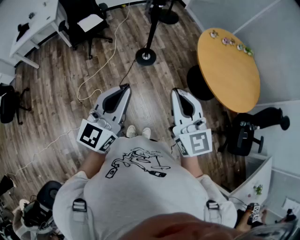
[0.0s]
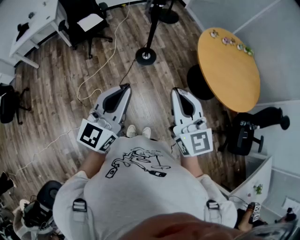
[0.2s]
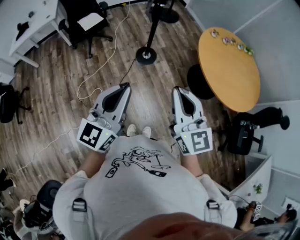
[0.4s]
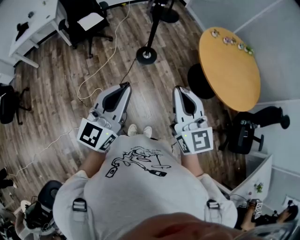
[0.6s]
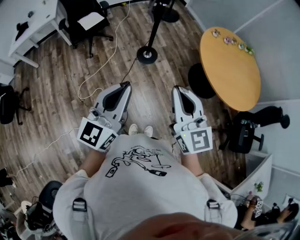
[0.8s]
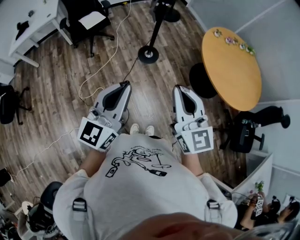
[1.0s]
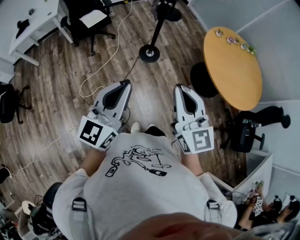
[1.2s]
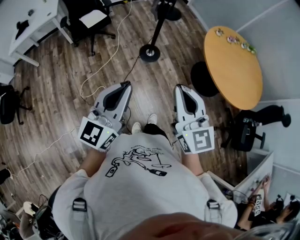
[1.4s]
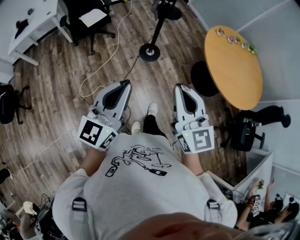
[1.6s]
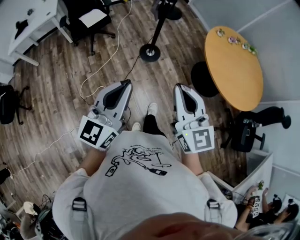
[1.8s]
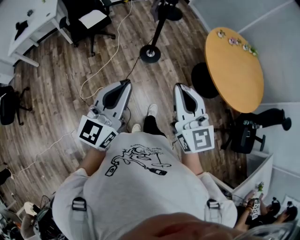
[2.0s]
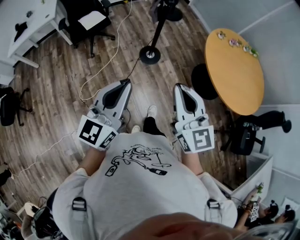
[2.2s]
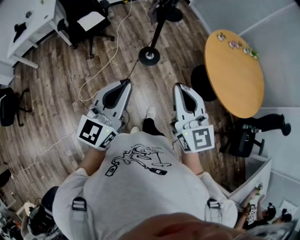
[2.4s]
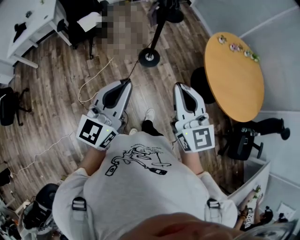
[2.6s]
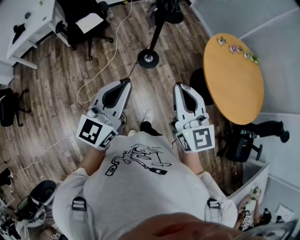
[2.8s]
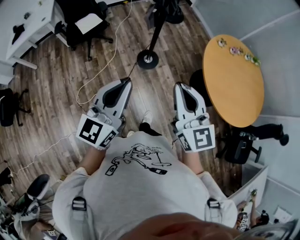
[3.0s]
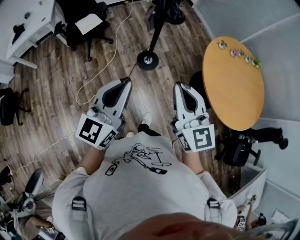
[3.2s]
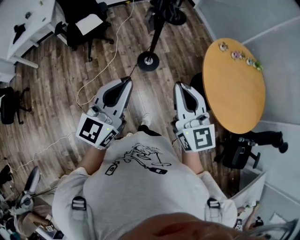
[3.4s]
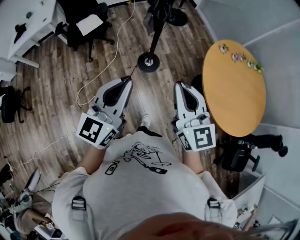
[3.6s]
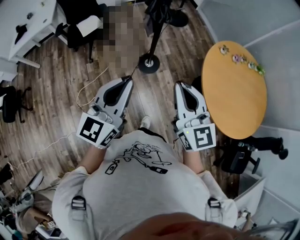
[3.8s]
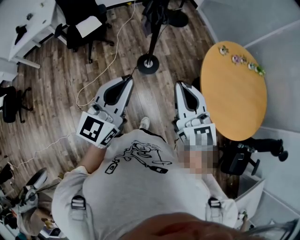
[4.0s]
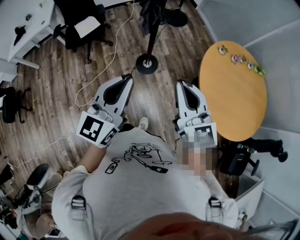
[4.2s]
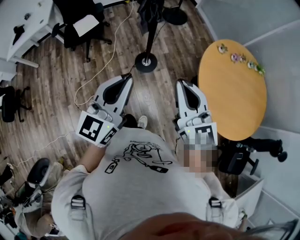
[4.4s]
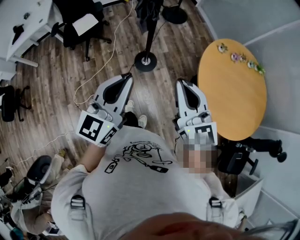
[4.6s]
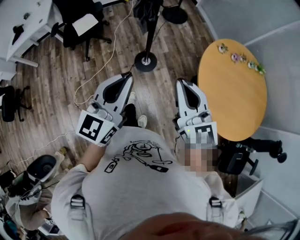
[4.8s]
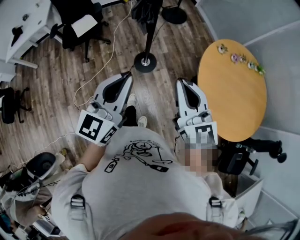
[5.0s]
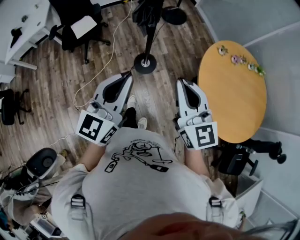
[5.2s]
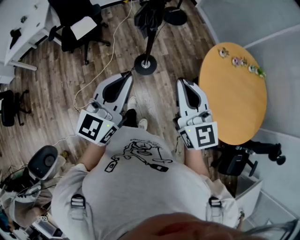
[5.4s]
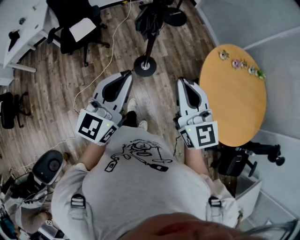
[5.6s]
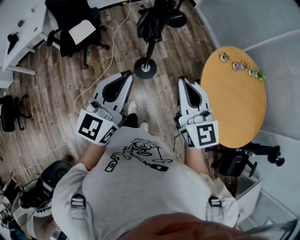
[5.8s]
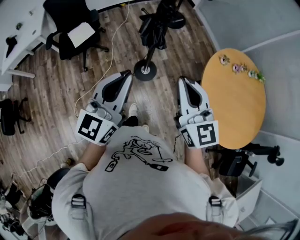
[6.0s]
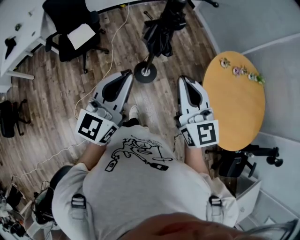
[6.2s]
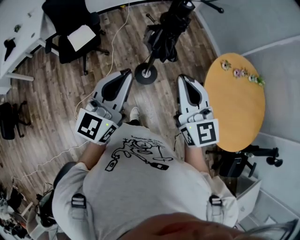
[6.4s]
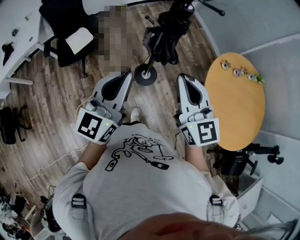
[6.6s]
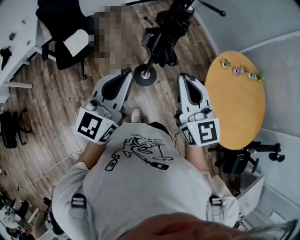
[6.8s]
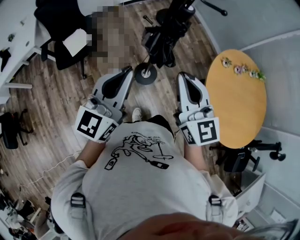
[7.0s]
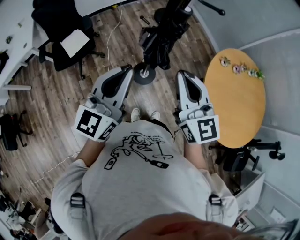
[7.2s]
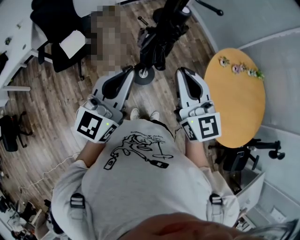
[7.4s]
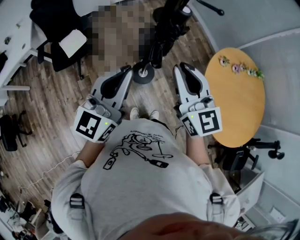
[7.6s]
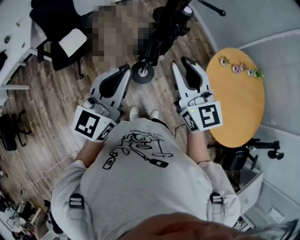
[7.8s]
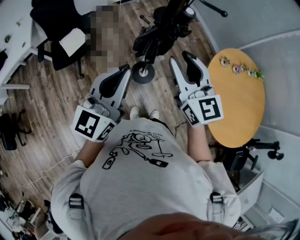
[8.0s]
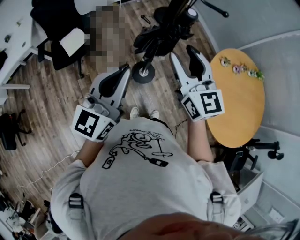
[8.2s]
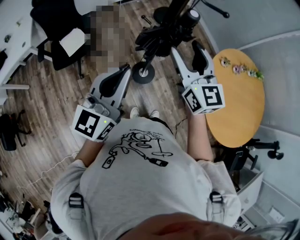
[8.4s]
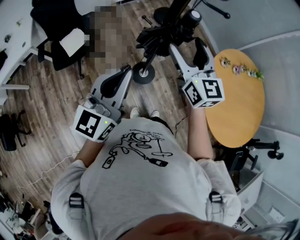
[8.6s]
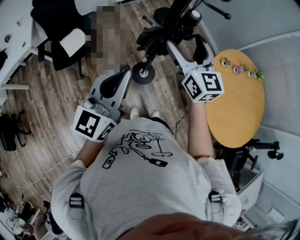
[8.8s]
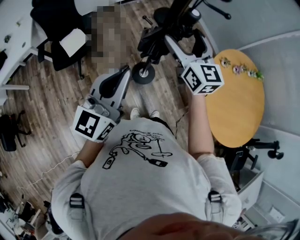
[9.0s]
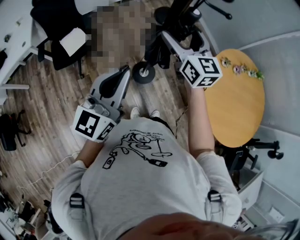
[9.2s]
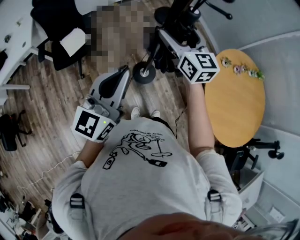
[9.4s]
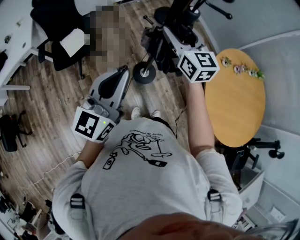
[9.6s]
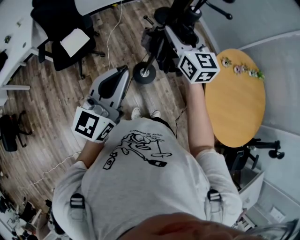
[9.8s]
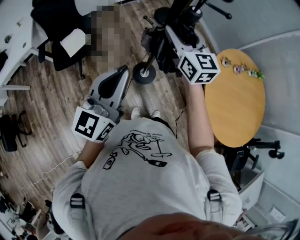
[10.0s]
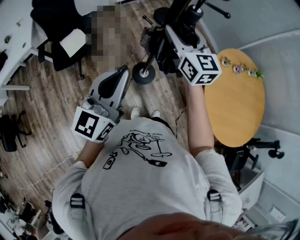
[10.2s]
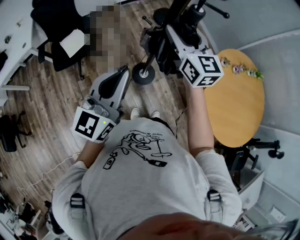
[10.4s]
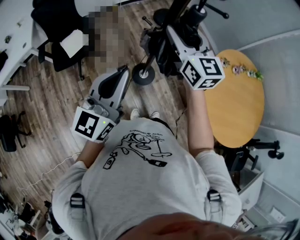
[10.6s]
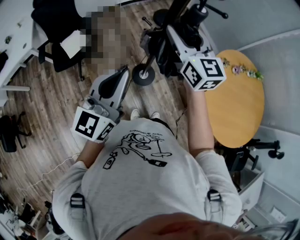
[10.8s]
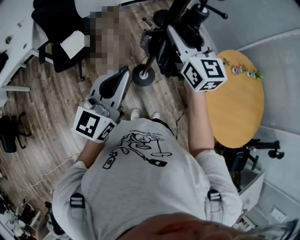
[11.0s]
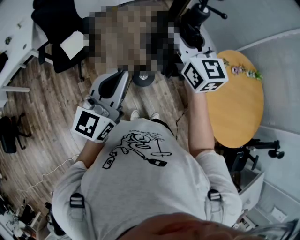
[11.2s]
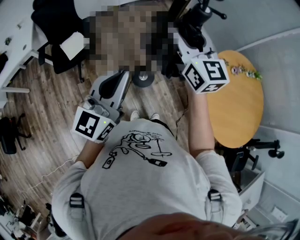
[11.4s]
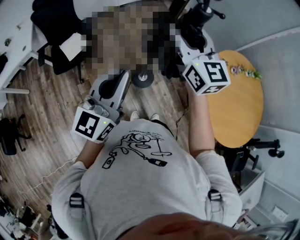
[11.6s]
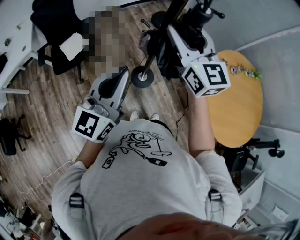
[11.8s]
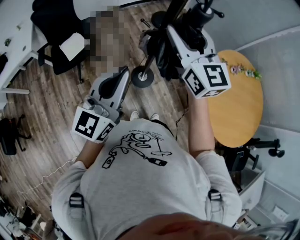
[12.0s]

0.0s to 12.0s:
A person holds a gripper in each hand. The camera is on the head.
0.0s to 1.6s: Both grippers move to the left, roughly 5 cm.
1.6s to 3.0s: Both grippers move forward, some 15 cm.
3.0s to 4.4s: Both grippers travel together forward and to the right, approximately 15 cm.
4.4s to 6.0s: Both grippers move forward, some 15 cm.
6.0s to 7.6s: Both grippers move forward, some 10 cm.
7.6s to 9.0s: The right gripper shifts approximately 10 cm forward, and opens its fingers.
9.0s to 10.4s: The right gripper closes.
10.4s to 12.0s: The right gripper travels upward by about 5 cm.

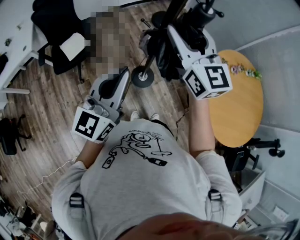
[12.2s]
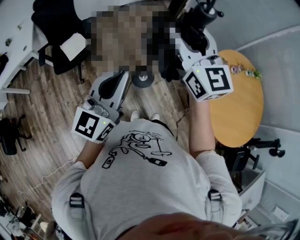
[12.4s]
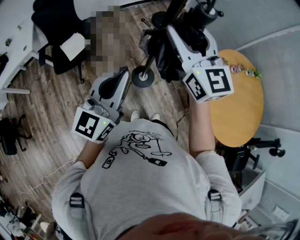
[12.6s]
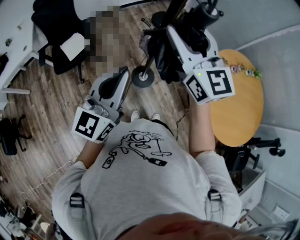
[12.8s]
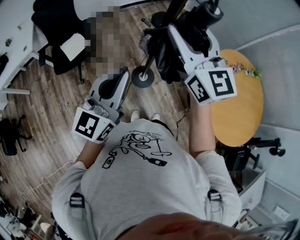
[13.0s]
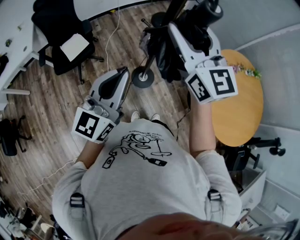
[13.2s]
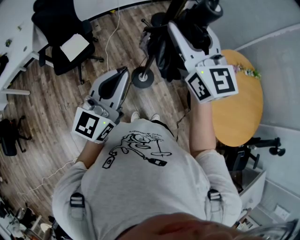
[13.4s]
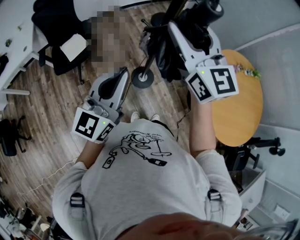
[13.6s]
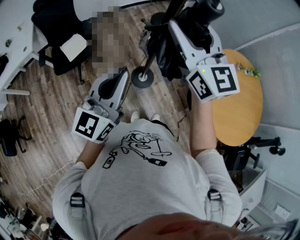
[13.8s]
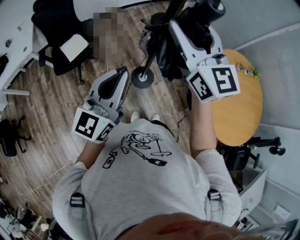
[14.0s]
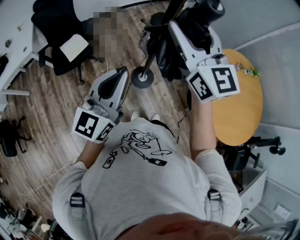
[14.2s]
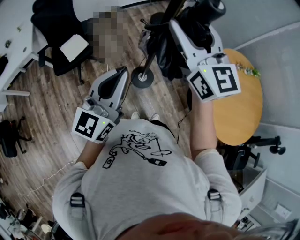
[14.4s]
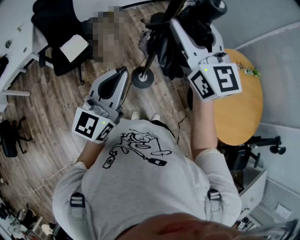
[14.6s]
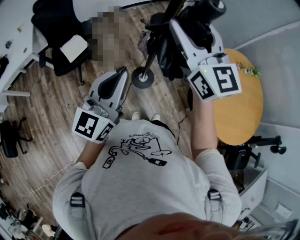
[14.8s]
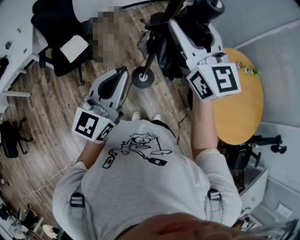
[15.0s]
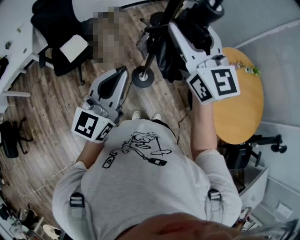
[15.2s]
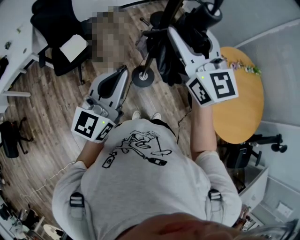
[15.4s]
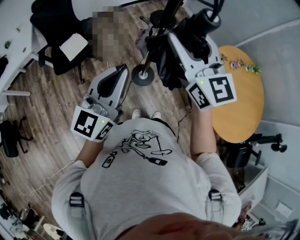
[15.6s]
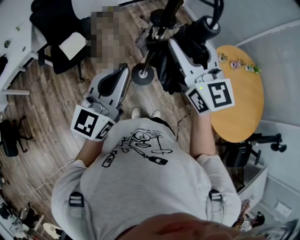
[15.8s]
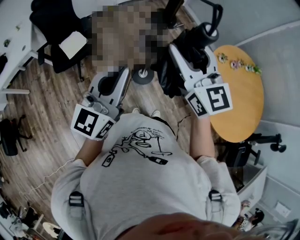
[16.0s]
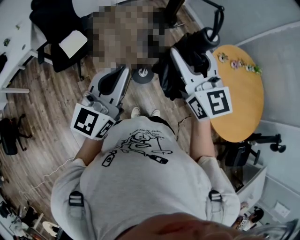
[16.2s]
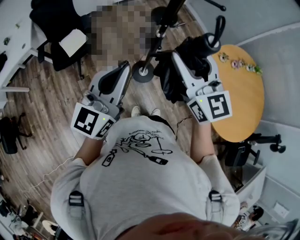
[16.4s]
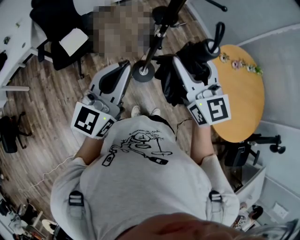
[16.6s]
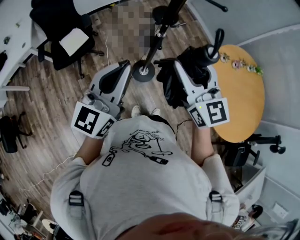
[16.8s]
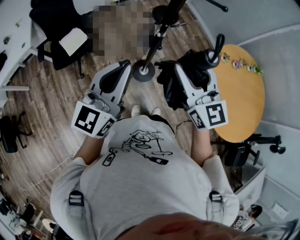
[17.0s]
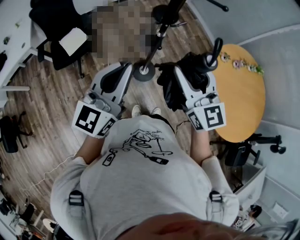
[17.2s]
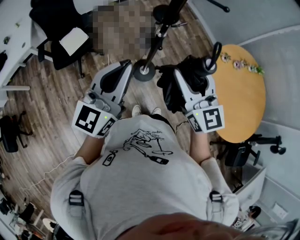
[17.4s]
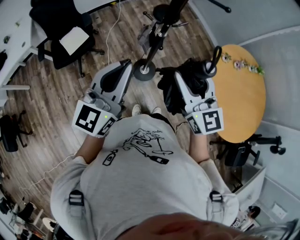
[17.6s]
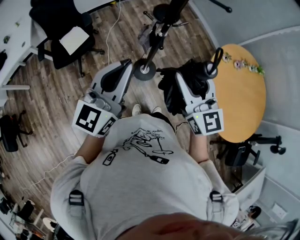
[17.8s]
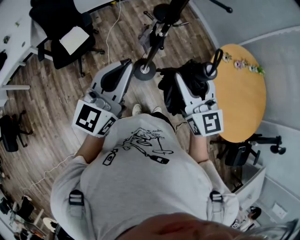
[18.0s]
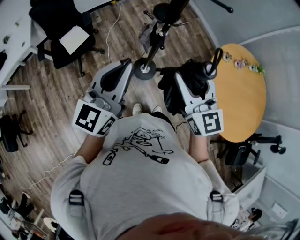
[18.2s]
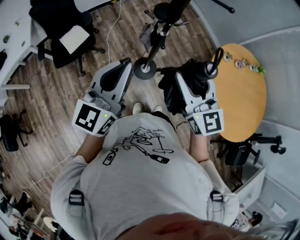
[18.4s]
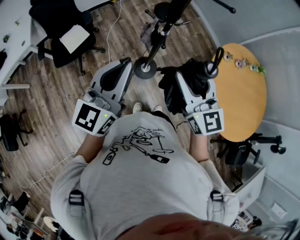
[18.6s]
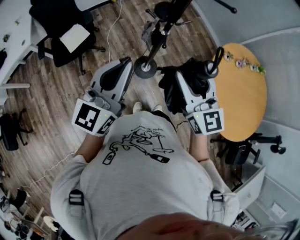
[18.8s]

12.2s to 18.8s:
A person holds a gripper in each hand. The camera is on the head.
12.2s to 15.4s: The grippers stay close to where they were, moving slightly.
15.4s to 17.2s: The right gripper travels downward and backward by about 10 cm.
17.2s to 18.8s: The grippers stay close to where they were, moving slightly.

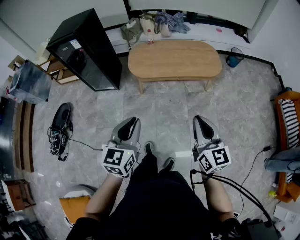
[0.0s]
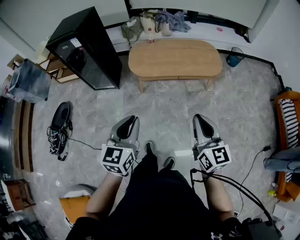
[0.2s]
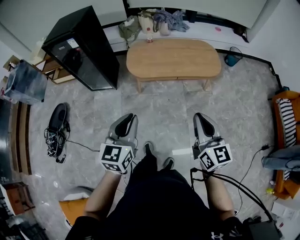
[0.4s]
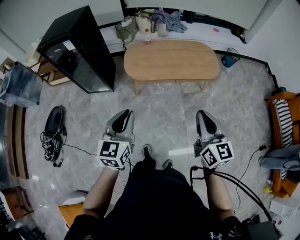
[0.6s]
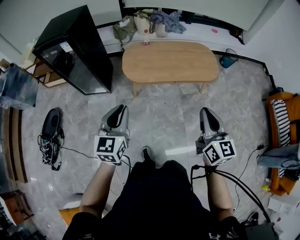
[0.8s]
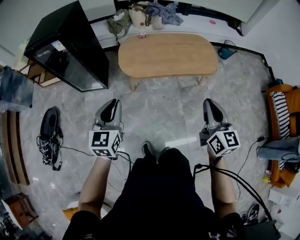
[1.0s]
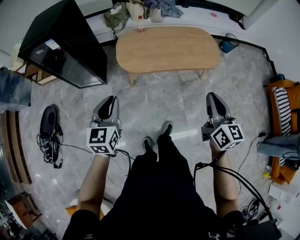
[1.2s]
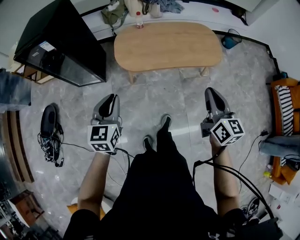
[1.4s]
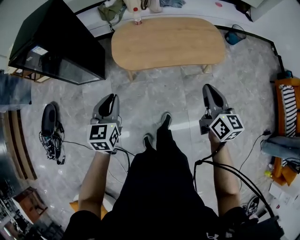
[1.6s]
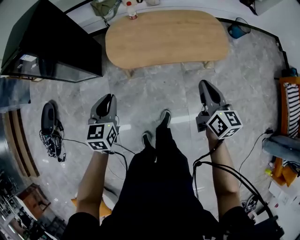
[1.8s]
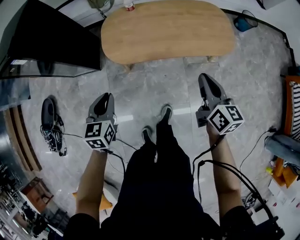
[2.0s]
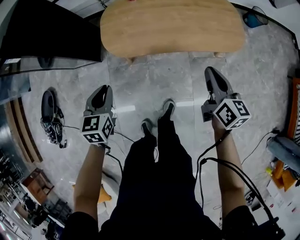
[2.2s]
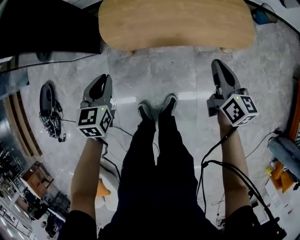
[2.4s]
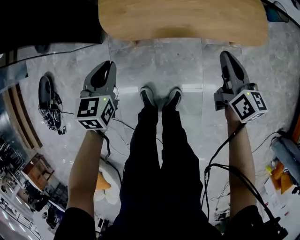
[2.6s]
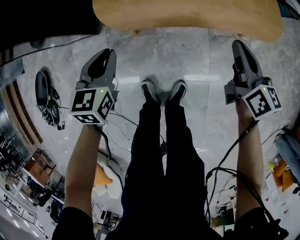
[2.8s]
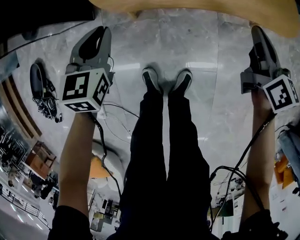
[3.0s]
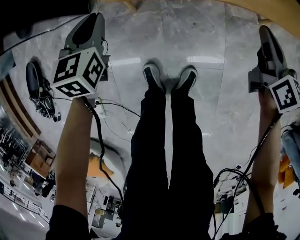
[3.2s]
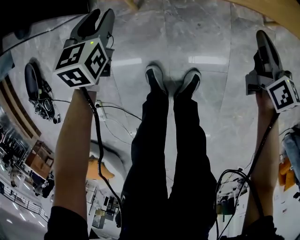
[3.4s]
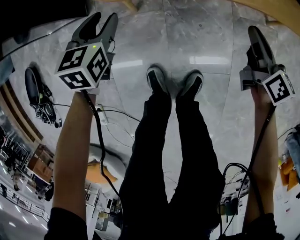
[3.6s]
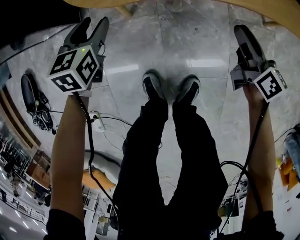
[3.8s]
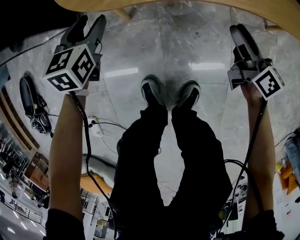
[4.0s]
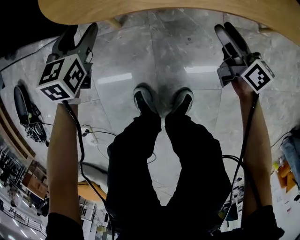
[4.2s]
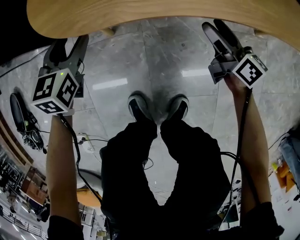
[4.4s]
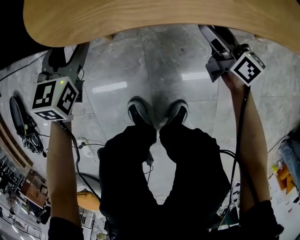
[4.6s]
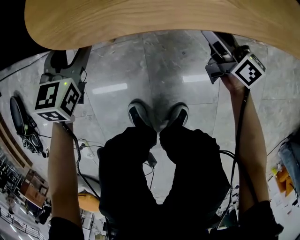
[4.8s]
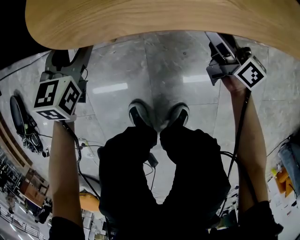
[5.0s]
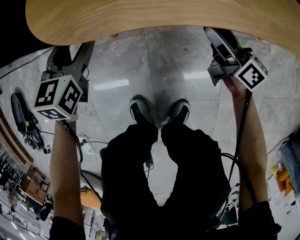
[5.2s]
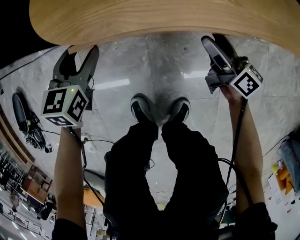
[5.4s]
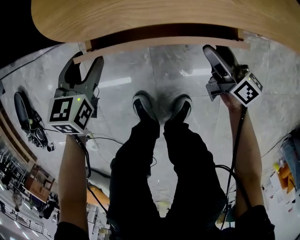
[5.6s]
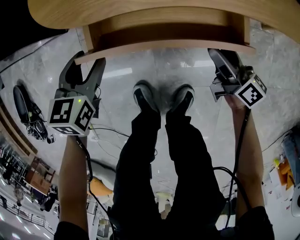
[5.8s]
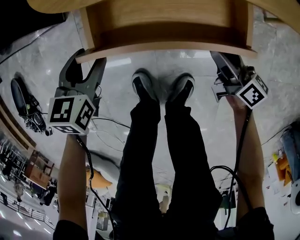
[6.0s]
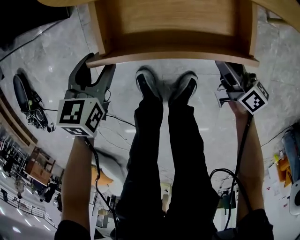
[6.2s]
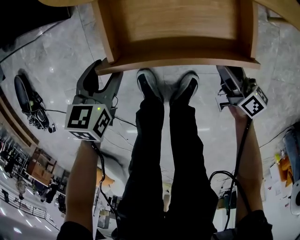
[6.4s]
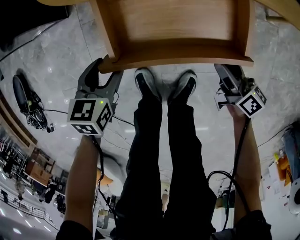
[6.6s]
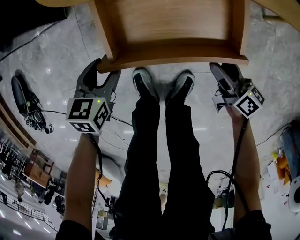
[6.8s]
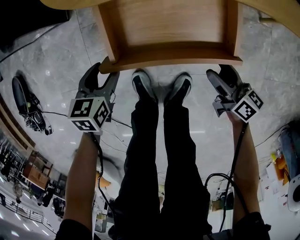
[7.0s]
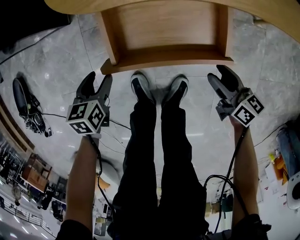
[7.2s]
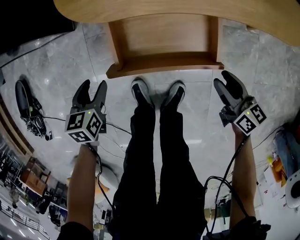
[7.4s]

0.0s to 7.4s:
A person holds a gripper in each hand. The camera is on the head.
0.0s to 1.4s: The left gripper travels forward, to the left and downward by some 30 cm. Meanwhile the right gripper shifts roughly 25 cm forward.
1.4s to 3.0s: Both grippers travel together downward and forward, approximately 50 cm.
3.0s to 4.4s: Both grippers move downward, about 30 cm. The left gripper opens up, while the right gripper opens.
4.4s to 6.0s: The grippers both shift backward by approximately 15 cm.
6.0s to 7.4s: The right gripper heads upward and backward, covering approximately 15 cm, swivels roughly 20 degrees, and closes its fingers. The left gripper travels backward and upward by some 10 cm.
